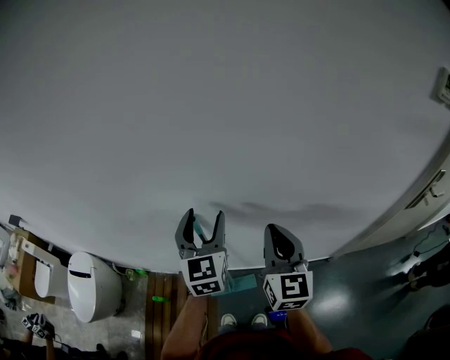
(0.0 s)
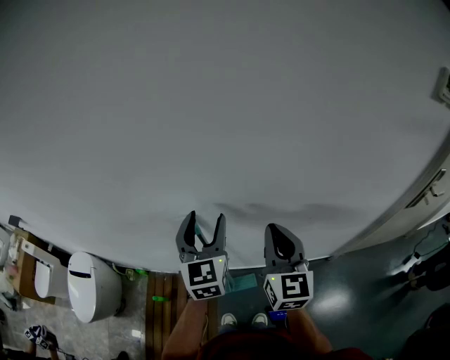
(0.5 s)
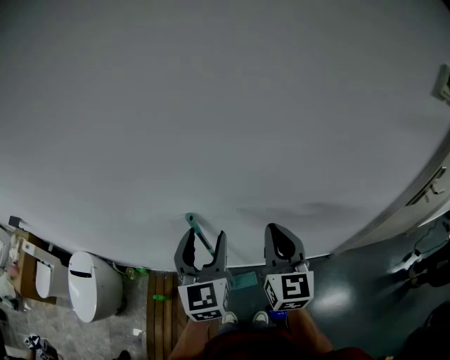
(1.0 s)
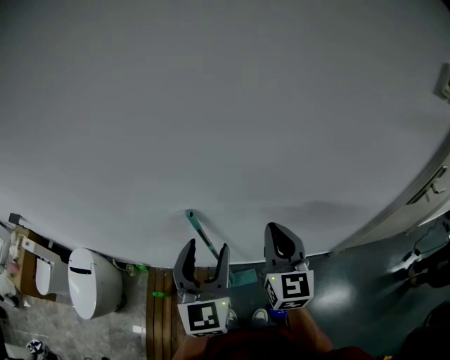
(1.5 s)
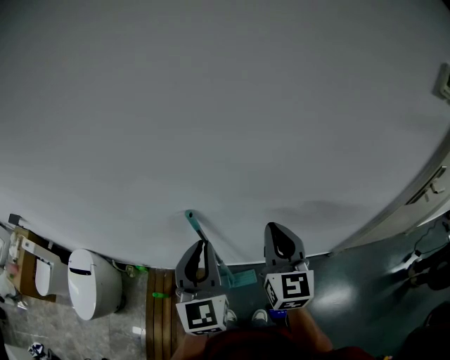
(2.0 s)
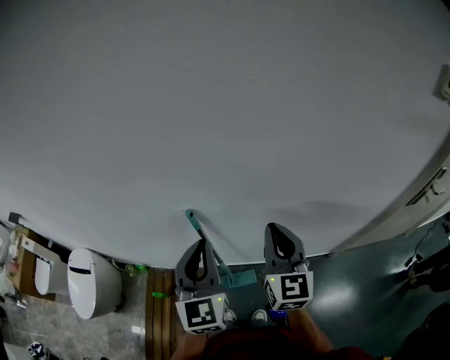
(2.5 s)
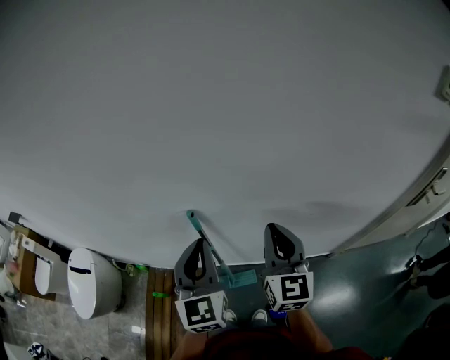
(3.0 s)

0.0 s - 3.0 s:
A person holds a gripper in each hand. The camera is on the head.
0.0 s - 1.5 s: The left gripper heads backward, covering about 10 cm.
1.5 s - 3.0 s: The left gripper closes its fingers.

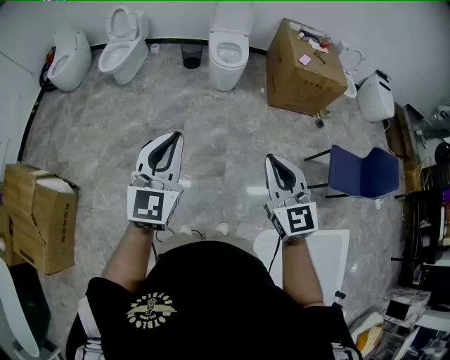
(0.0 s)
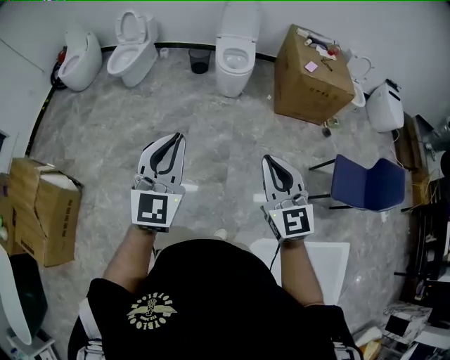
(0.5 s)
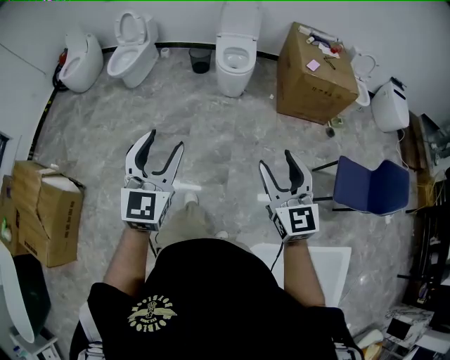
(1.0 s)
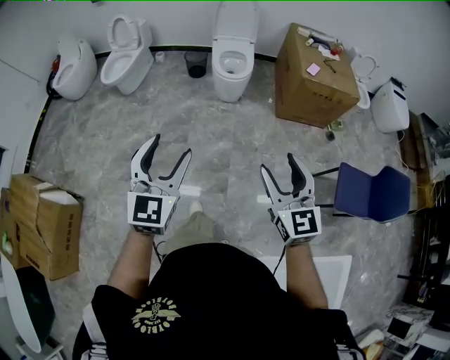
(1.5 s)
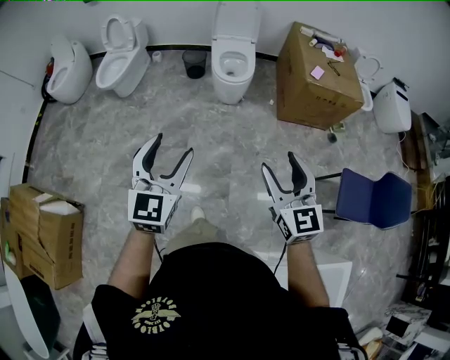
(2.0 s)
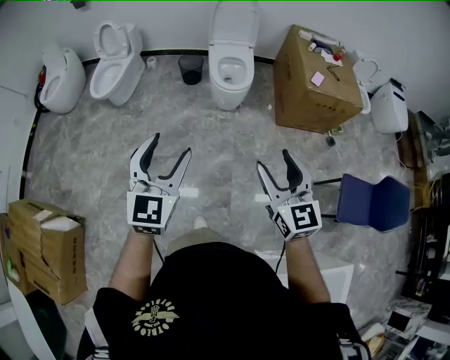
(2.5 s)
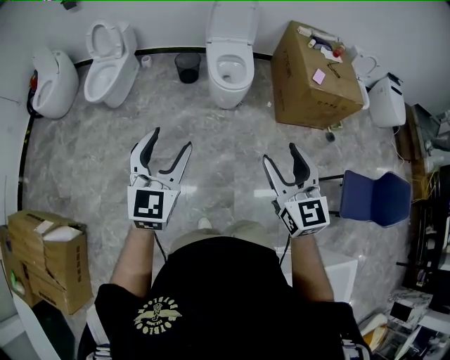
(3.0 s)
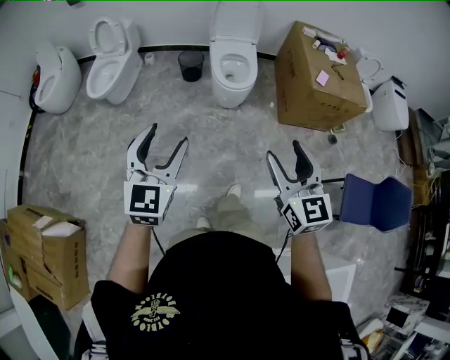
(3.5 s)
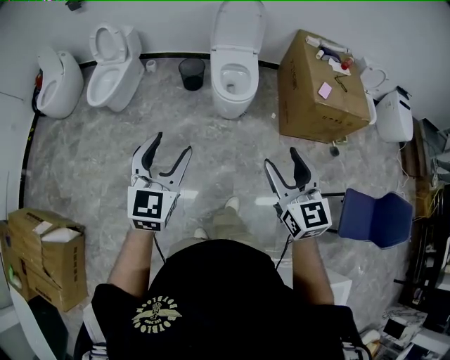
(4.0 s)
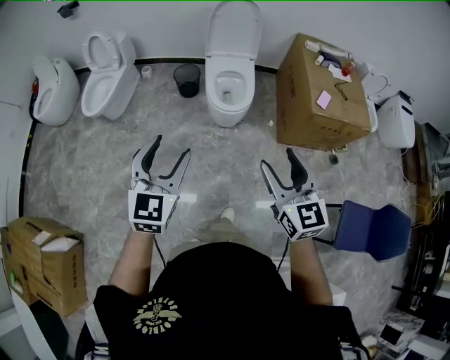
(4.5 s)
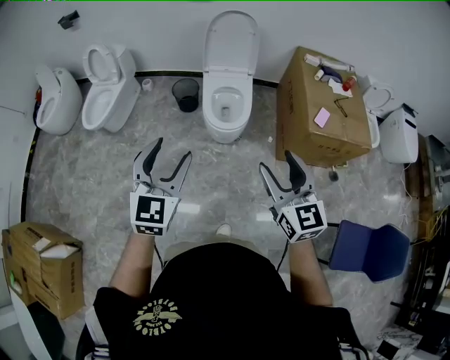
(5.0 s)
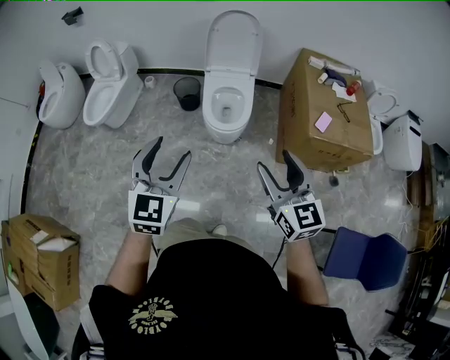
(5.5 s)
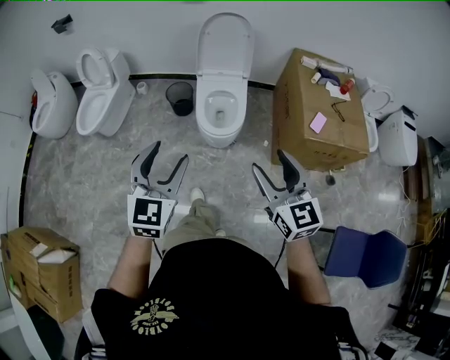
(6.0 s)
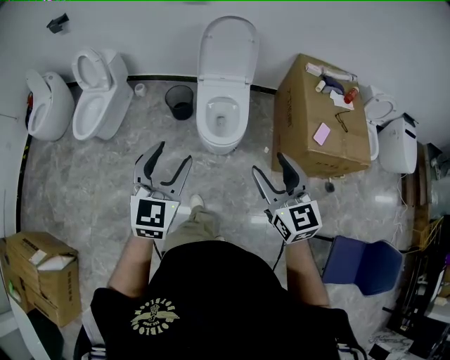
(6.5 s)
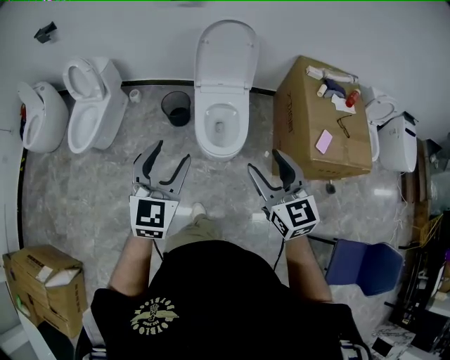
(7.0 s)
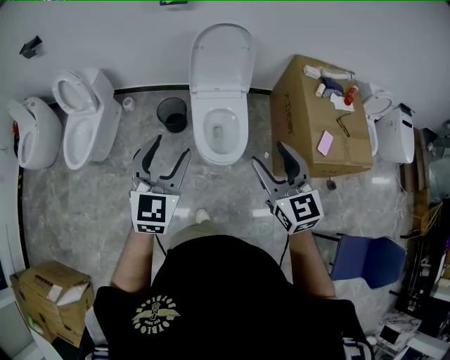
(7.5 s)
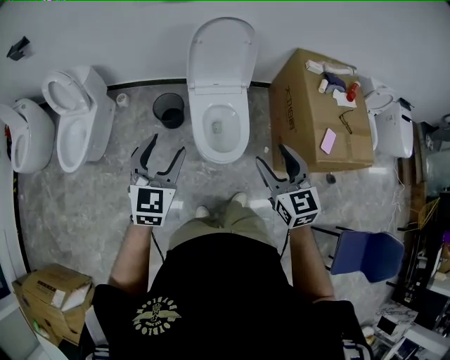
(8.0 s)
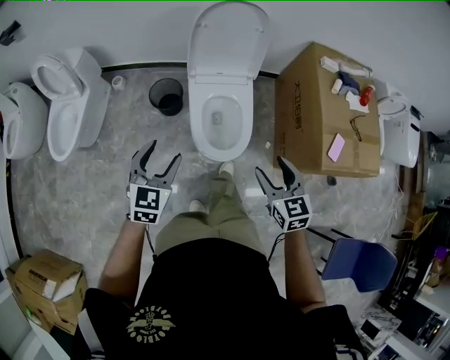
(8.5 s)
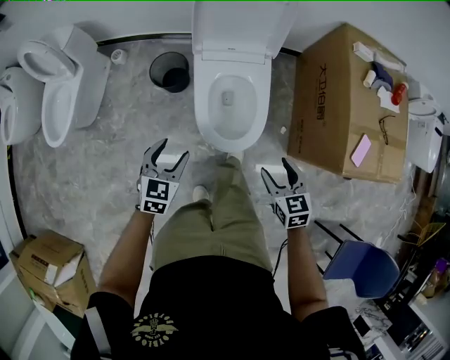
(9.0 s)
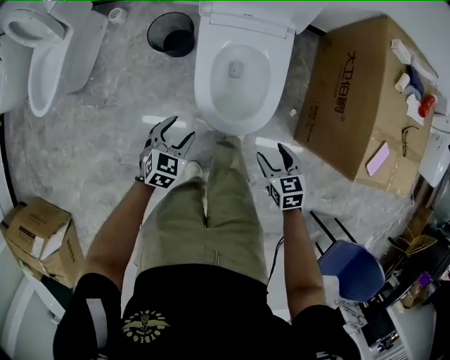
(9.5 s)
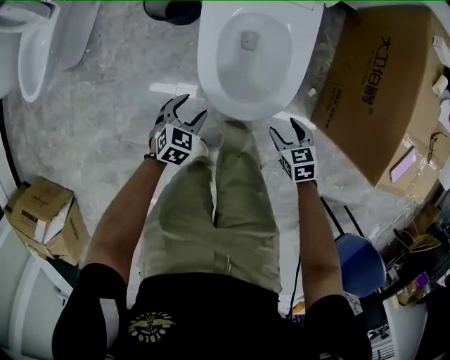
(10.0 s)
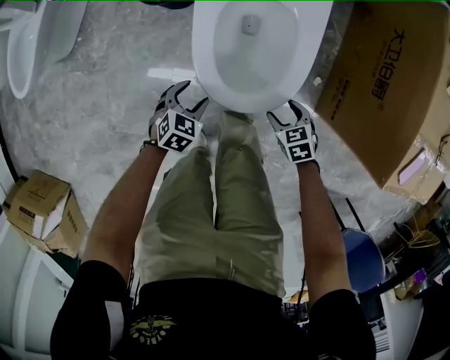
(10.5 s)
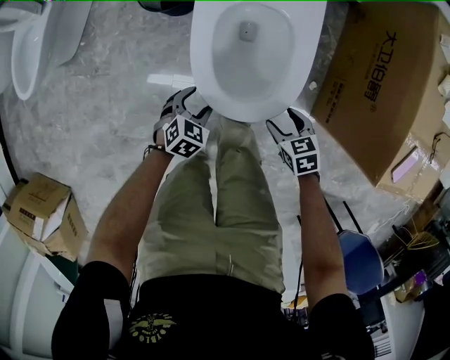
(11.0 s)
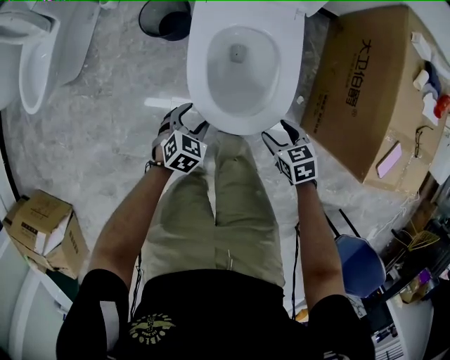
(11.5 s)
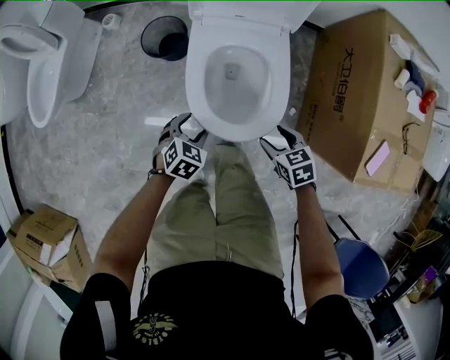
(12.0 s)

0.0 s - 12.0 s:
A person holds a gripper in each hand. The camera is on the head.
0.0 s - 2.0 s: The two grippers go about 20 cm forward. The right gripper opens. Meanwhile the left gripper opens its fingers.
2.0 s - 4.0 s: Both grippers travel together forward, roughly 20 cm.
4.0 s - 6.0 s: The two grippers go roughly 25 cm forward and to the right.
6.0 s - 8.0 s: The grippers both shift forward by roughly 30 cm.
8.0 s - 10.0 s: Both grippers travel together downward, roughly 60 cm. The right gripper points its fingers some 40 degrees further downward, while the left gripper angles its fingers downward, by about 40 degrees.
10.0 s - 12.0 s: The grippers both shift upward by roughly 10 cm.

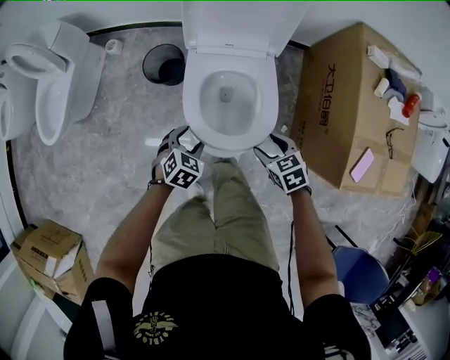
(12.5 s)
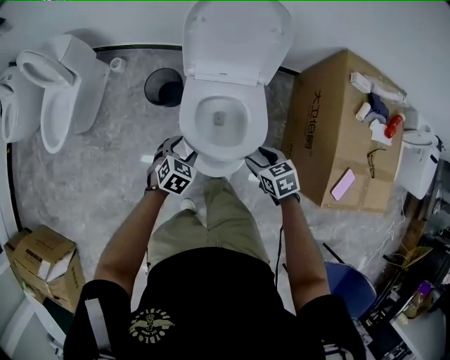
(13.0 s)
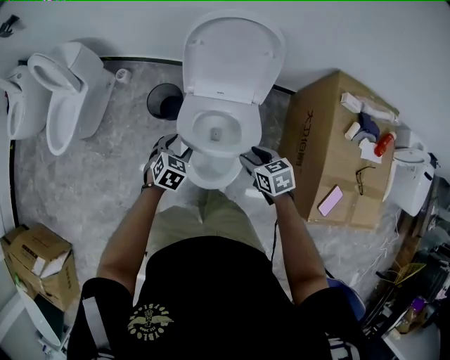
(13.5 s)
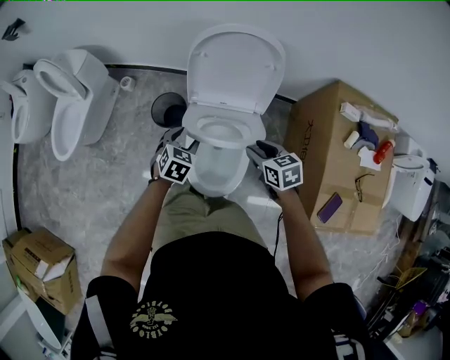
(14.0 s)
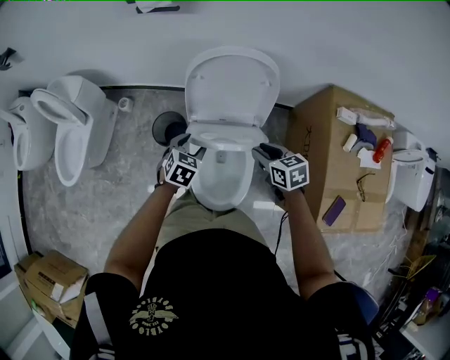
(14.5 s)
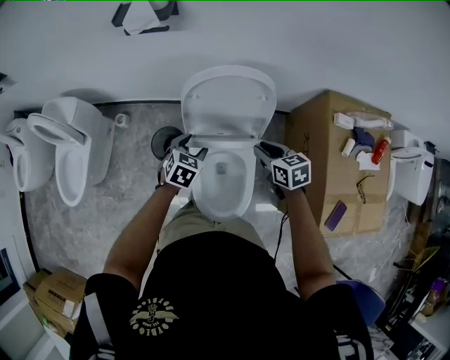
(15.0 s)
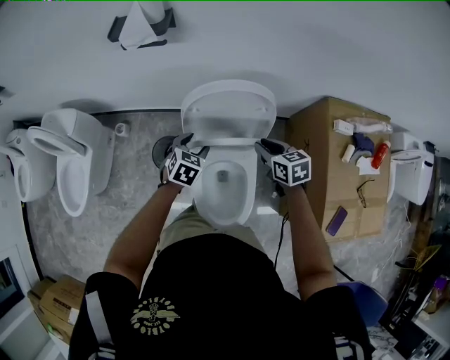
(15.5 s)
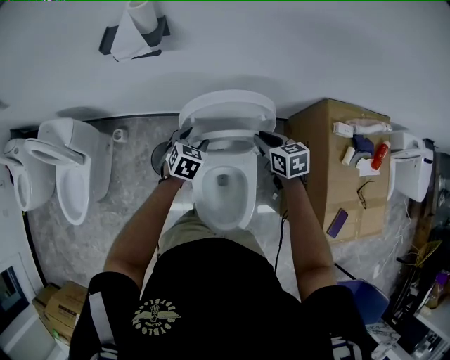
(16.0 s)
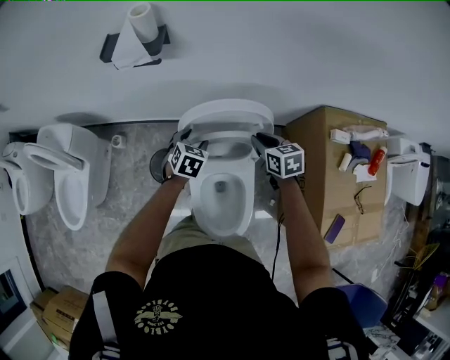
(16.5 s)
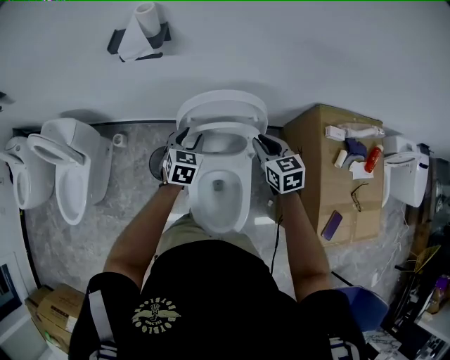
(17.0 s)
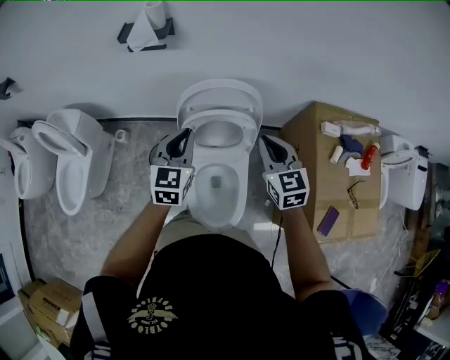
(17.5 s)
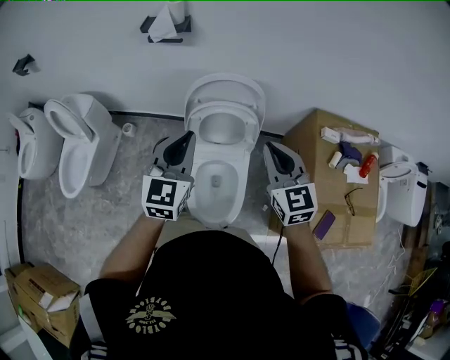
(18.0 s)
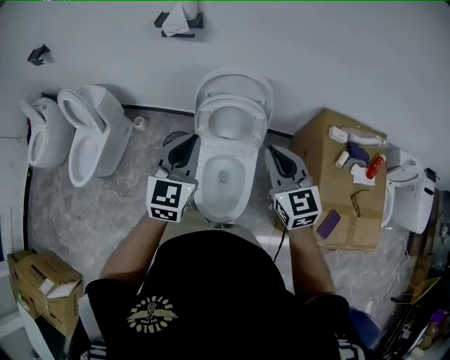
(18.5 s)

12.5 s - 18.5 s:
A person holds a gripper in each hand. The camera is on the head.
12.5 s - 14.5 s: Both grippers travel together forward and upward, about 25 cm. The right gripper closes its fingers.
14.5 s - 16.5 s: The grippers both shift forward by some 20 cm.
16.5 s - 18.5 s: The right gripper heads backward and upward, covering some 35 cm, and rotates approximately 40 degrees, while the left gripper moves upward and backward, approximately 40 cm, tips its fingers upward by roughly 40 degrees, and closes.

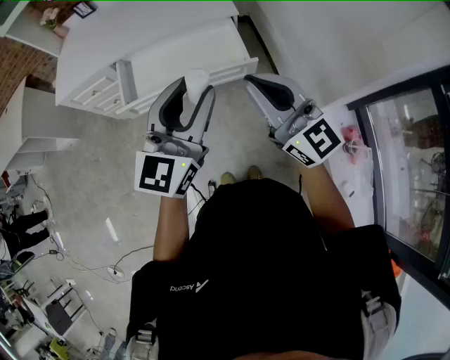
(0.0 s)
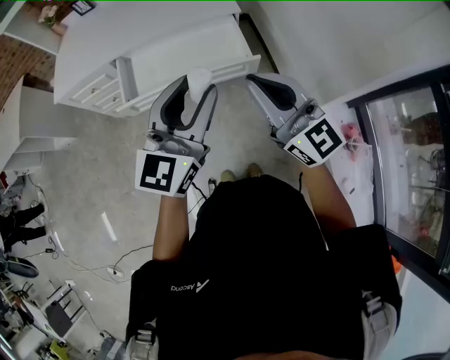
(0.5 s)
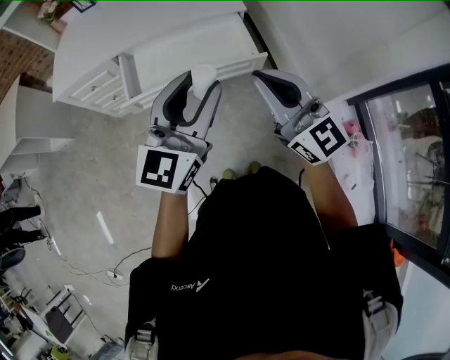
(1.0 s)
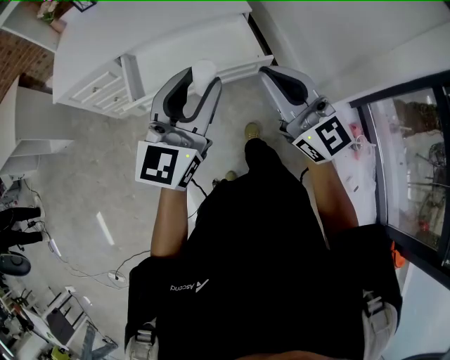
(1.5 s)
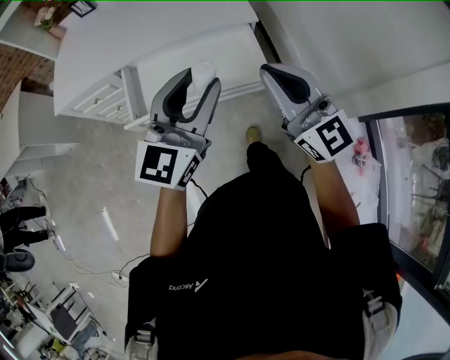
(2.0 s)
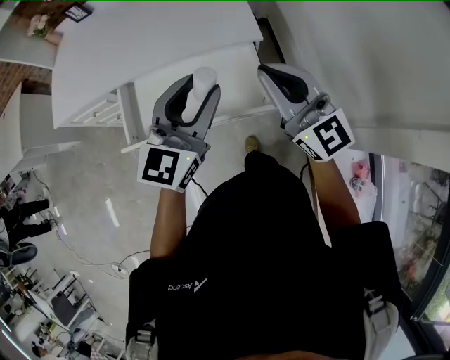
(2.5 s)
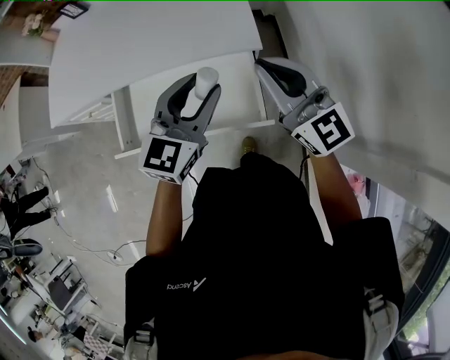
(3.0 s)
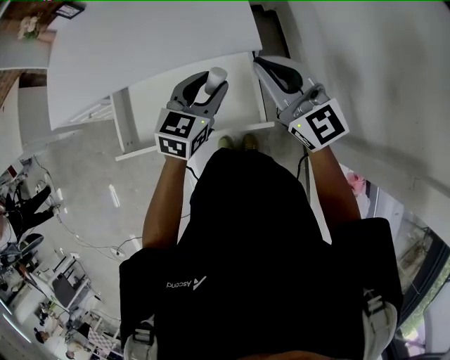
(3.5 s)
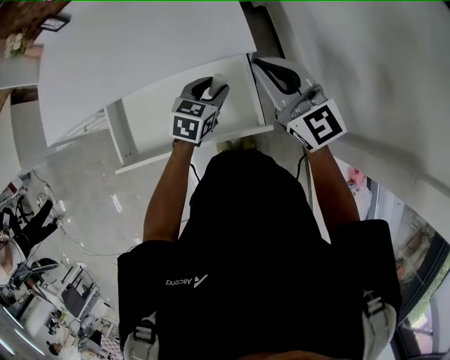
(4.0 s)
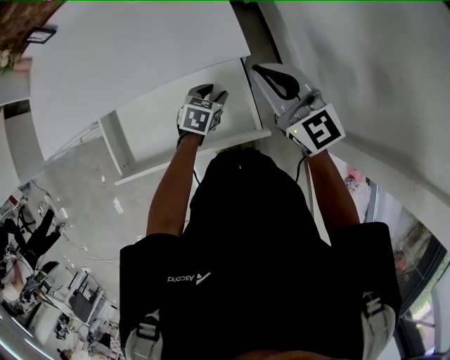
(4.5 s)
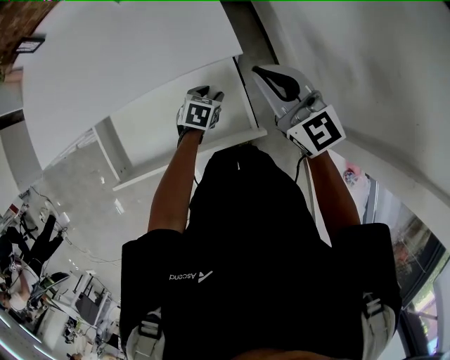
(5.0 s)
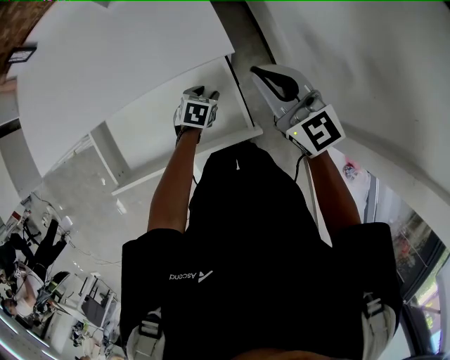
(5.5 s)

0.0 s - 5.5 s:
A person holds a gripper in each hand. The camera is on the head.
0.0 s - 2.0 s: Both grippers travel together forward, about 15 cm.
2.0 s - 3.5 s: The left gripper travels forward, downward and to the right by approximately 35 cm, and points its fingers some 30 degrees further downward; the right gripper shifts about 25 cm forward.
3.5 s - 5.5 s: The left gripper is displaced downward by some 25 cm, and angles its fingers downward, by approximately 30 degrees. The right gripper heads downward and forward, covering about 10 cm.
